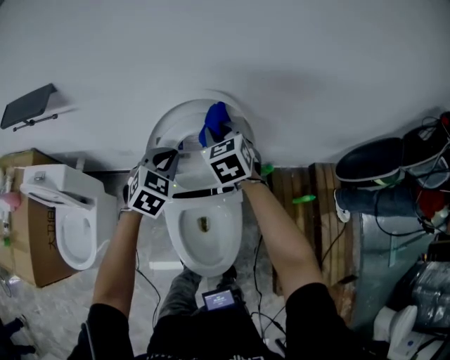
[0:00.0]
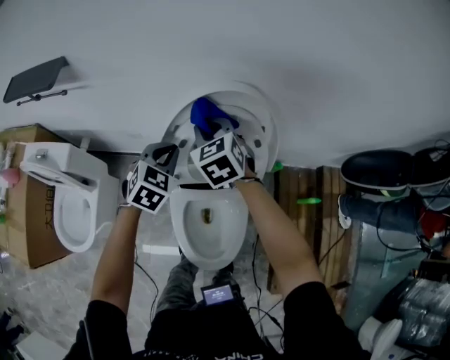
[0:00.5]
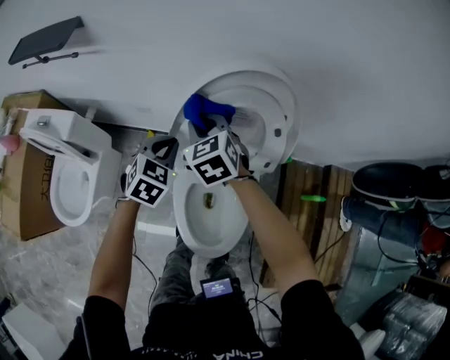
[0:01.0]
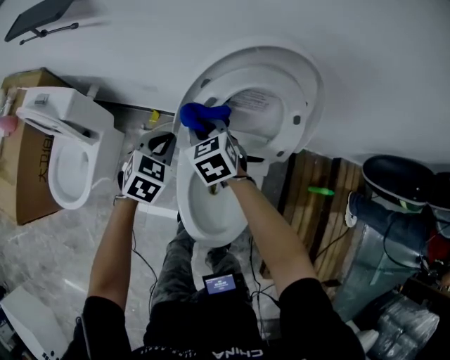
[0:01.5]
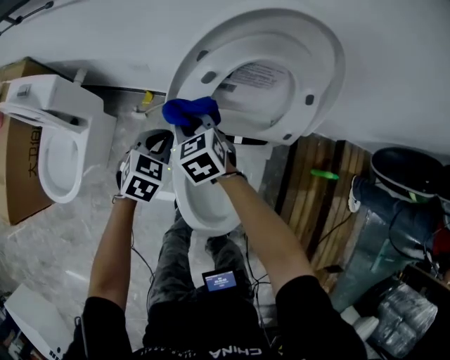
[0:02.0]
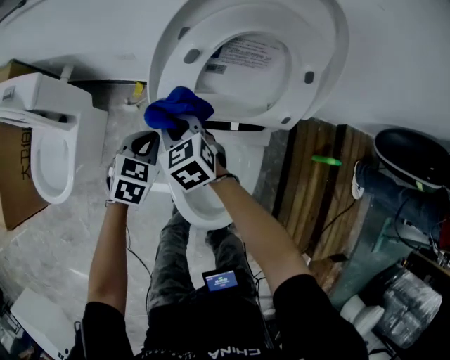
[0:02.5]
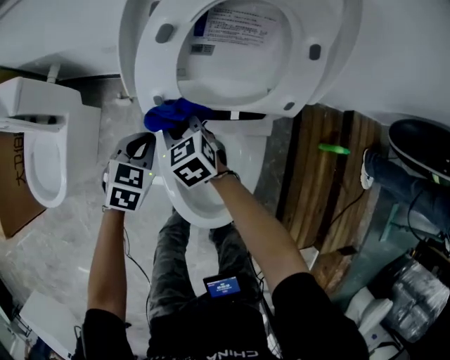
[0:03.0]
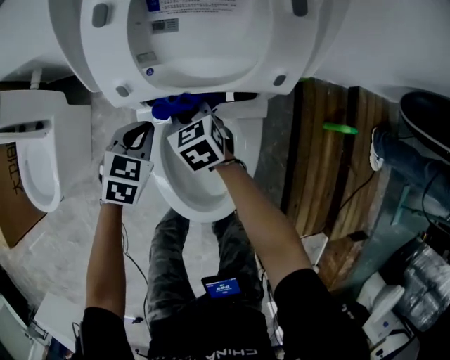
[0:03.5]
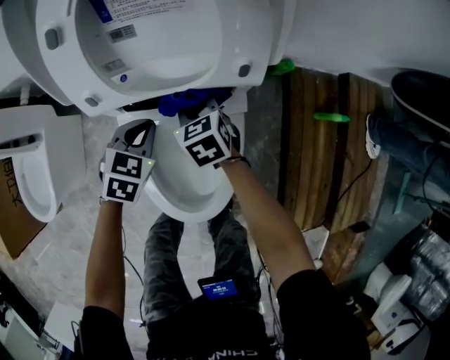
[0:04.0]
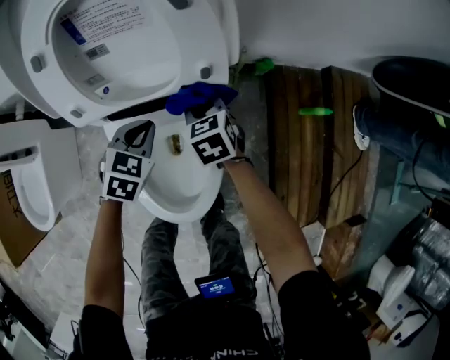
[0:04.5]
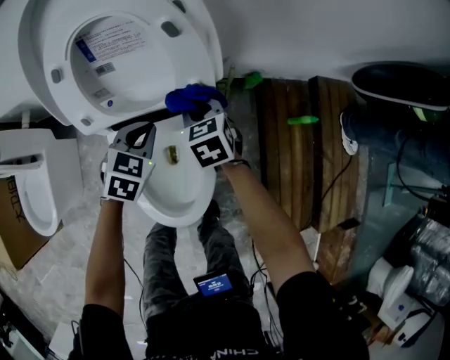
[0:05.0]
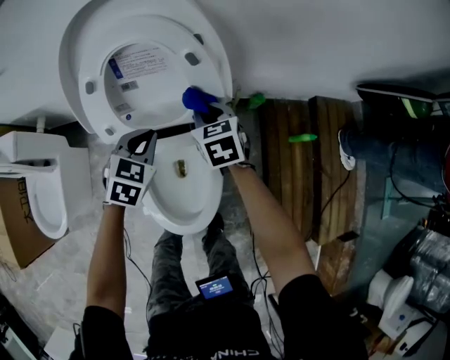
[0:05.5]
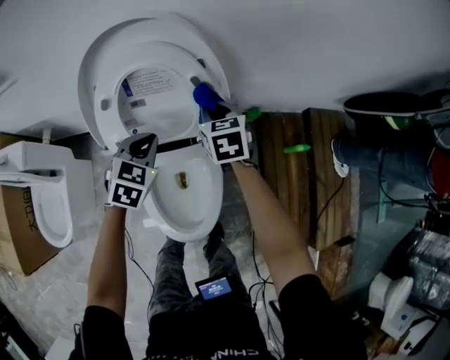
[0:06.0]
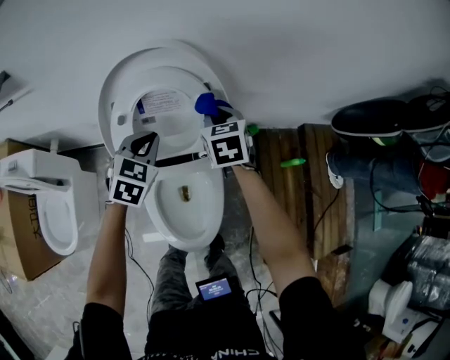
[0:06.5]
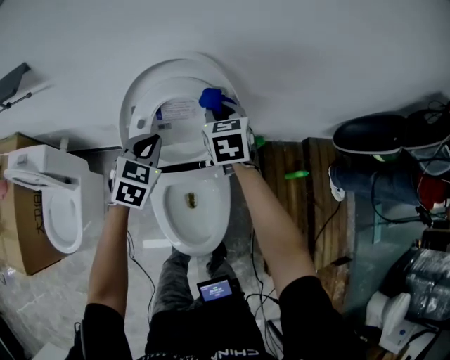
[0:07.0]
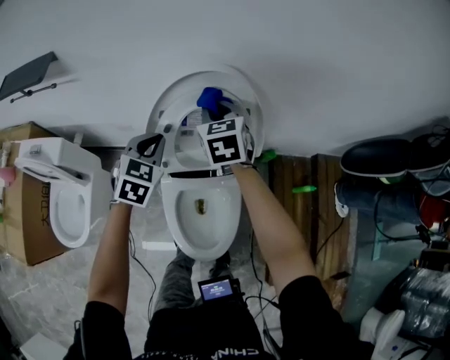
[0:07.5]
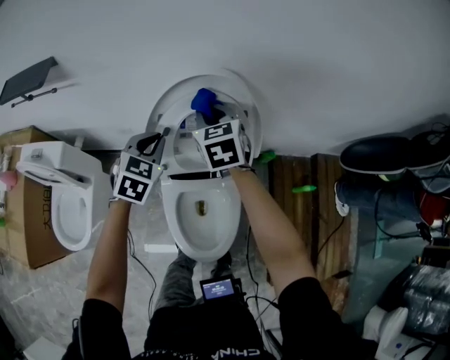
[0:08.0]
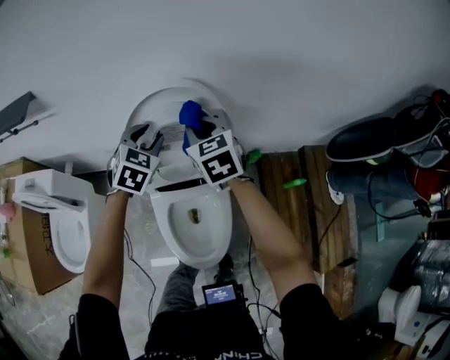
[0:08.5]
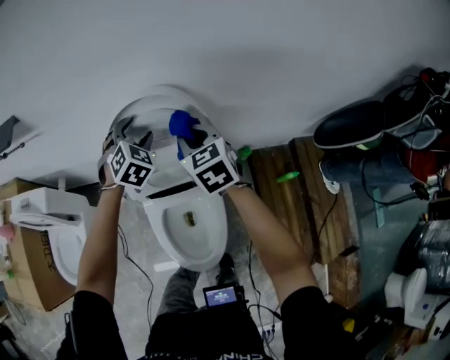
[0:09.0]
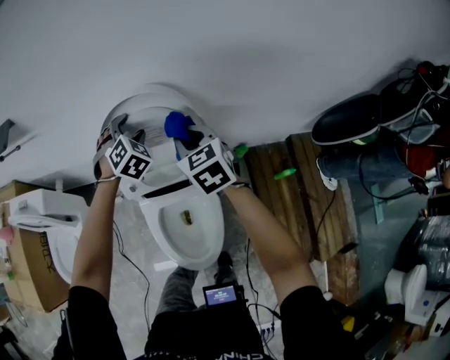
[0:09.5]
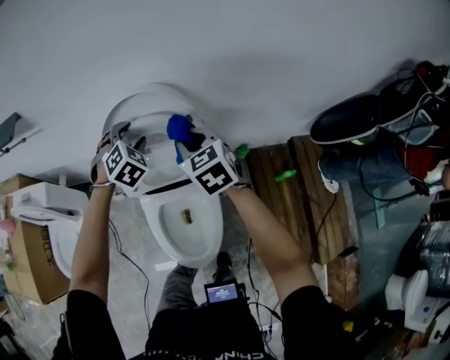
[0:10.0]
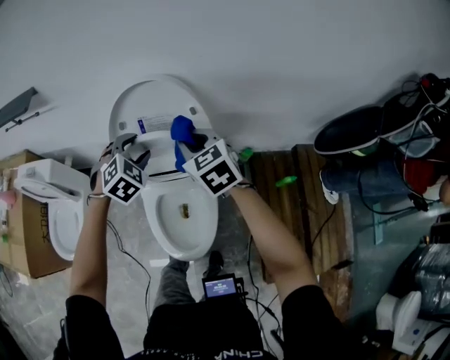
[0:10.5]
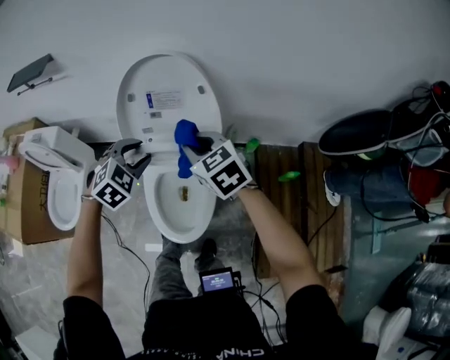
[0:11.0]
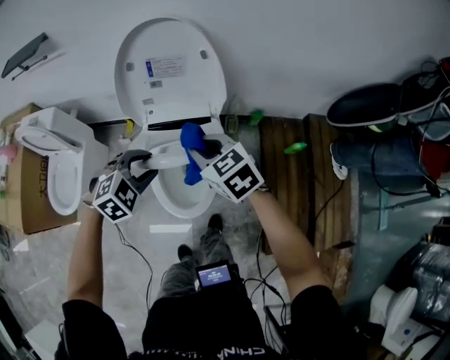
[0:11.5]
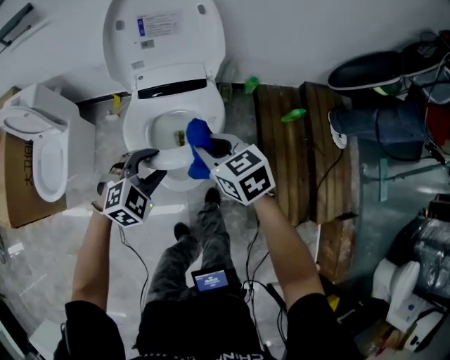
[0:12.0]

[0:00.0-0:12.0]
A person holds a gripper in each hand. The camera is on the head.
0:00.0 to 0:02.0: The two grippers go roughly 30 cm downward and to the left. The right gripper swivels approximately 20 degrees; the left gripper turns by about 20 degrees.
0:02.0 to 0:04.0: The right gripper shifts approximately 25 cm to the right and downward, while the left gripper travels downward and to the right by about 20 cm.
0:04.0 to 0:06.0: The right gripper heads upward and to the right, covering approximately 25 cm. The left gripper goes roughly 20 cm upward.
0:06.0 to 0:08.0: Both grippers travel together upward and to the left, some 20 cm.
0:08.0 to 0:10.0: The left gripper travels to the right by approximately 10 cm, swivels about 30 degrees, and opens up; the right gripper goes about 15 cm to the right and backward.
0:10.0 to 0:12.0: The left gripper is displaced backward by about 40 cm, and swivels roughly 30 degrees. The right gripper heads backward and downward, covering roughly 35 cm.

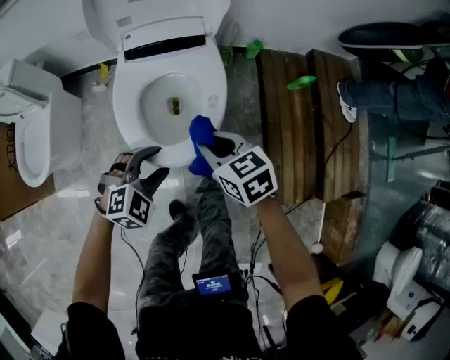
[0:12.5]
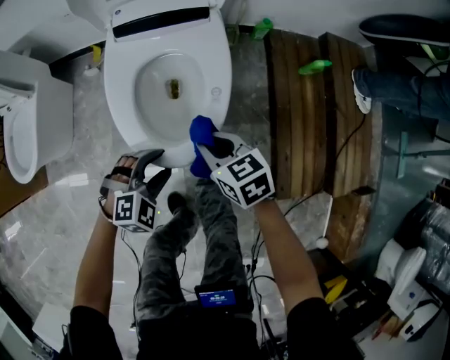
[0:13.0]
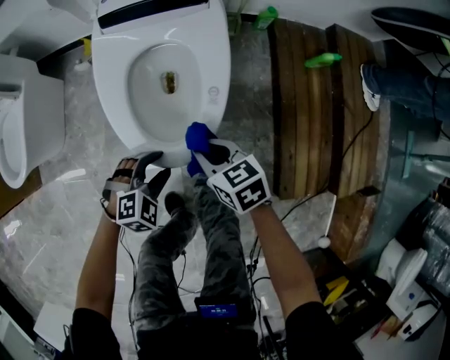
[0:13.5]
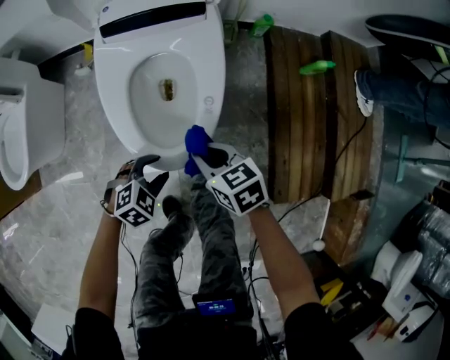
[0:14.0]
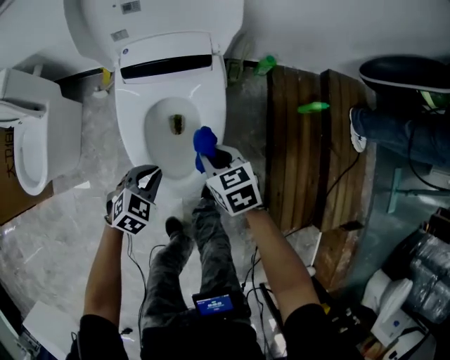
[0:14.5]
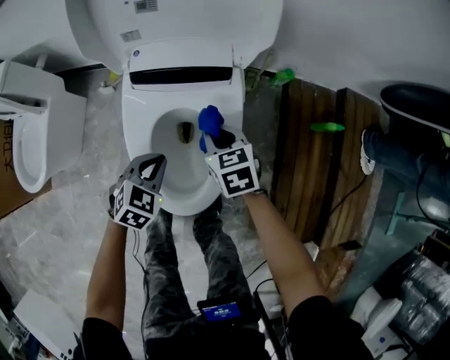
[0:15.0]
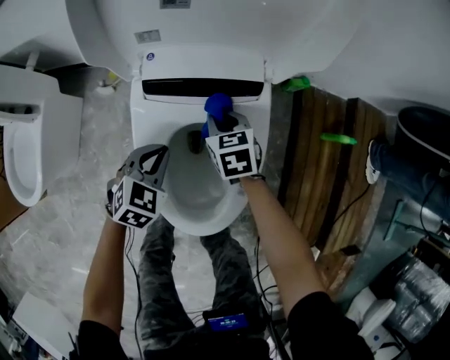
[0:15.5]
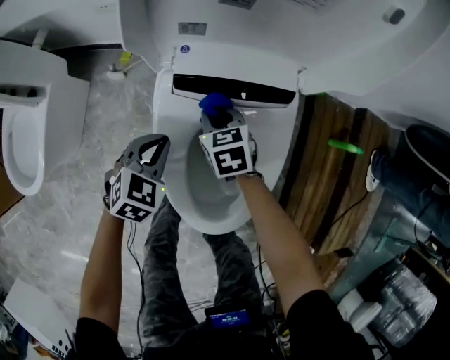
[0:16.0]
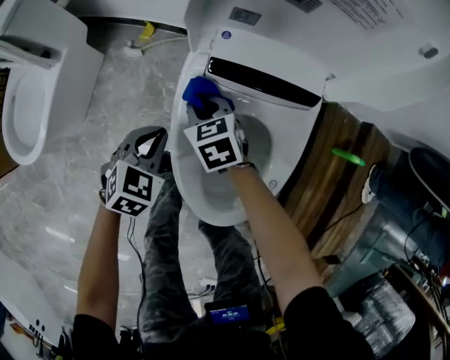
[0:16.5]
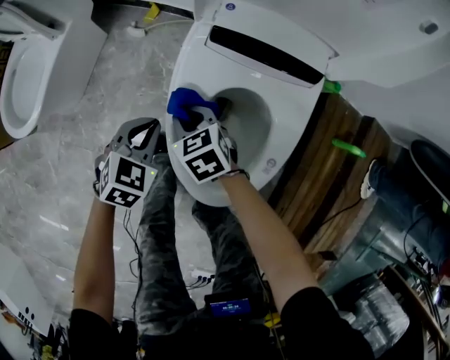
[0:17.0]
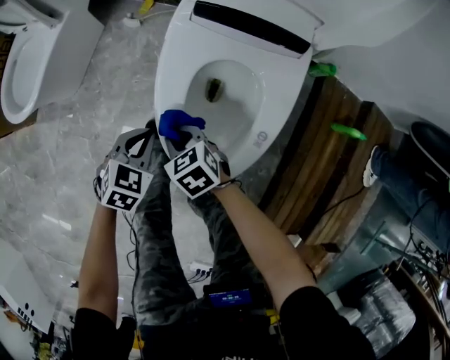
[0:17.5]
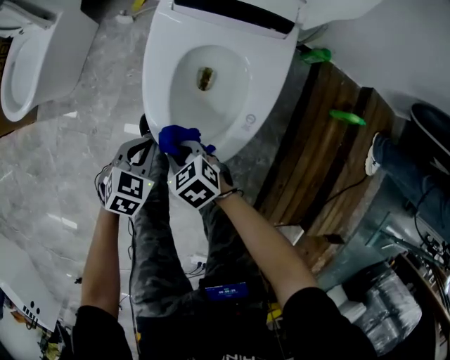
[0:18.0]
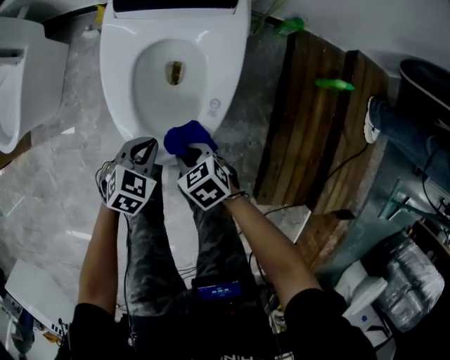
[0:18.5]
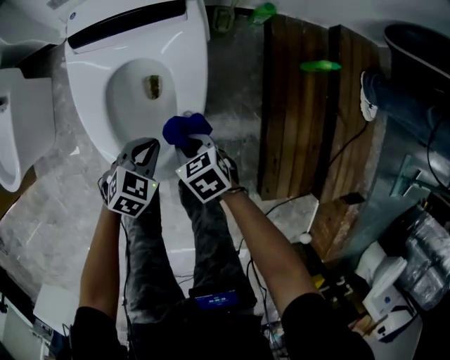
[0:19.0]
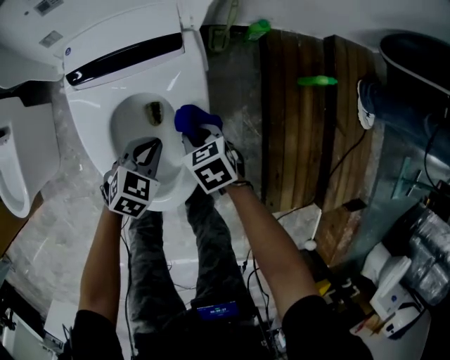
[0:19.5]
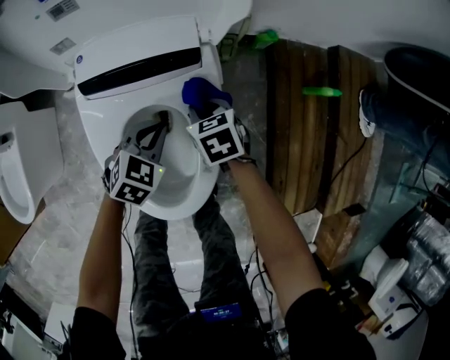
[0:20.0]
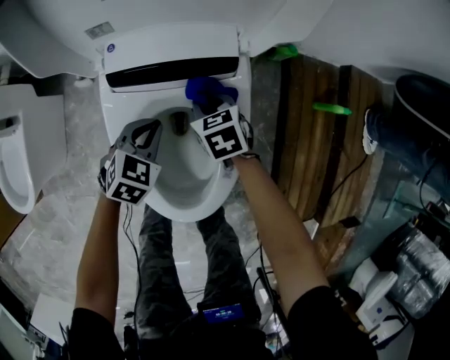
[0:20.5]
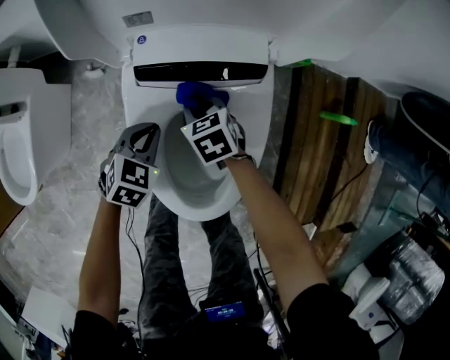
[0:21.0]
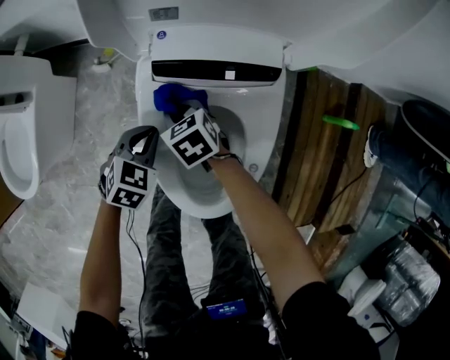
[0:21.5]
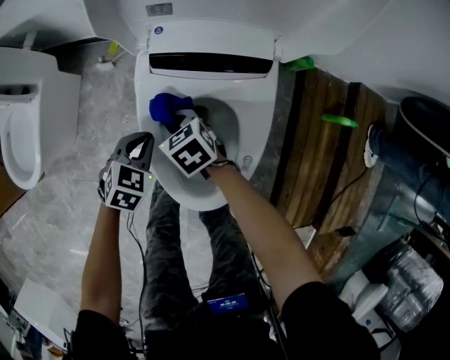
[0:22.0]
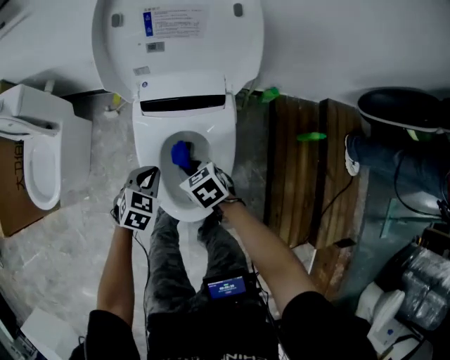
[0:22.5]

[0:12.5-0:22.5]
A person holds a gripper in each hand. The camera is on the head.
0:12.5 to 0:14.5: Both grippers travel together downward and forward, approximately 15 cm. The left gripper changes its angle by approximately 30 degrees, and closes.
0:14.5 to 0:16.5: The left gripper goes roughly 25 cm to the left and forward, and turns by some 20 degrees. Meanwhile the right gripper goes roughly 35 cm to the left, forward and downward.
0:16.5 to 0:18.5: The right gripper goes some 35 cm backward. The left gripper travels backward and to the right by approximately 30 cm.
0:18.5 to 0:20.5: The two grippers go some 30 cm forward. The right gripper changes its angle by some 20 degrees.
0:20.5 to 0:22.5: The left gripper shifts some 15 cm upward, backward and to the left. Meanwhile the right gripper is displaced backward, upward and to the left by about 20 cm.

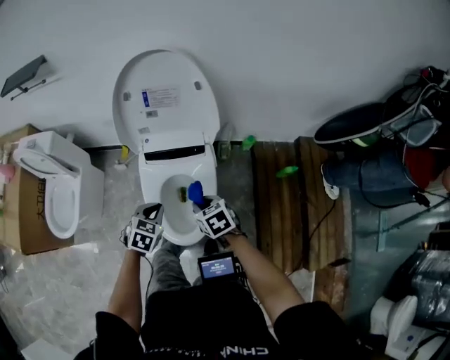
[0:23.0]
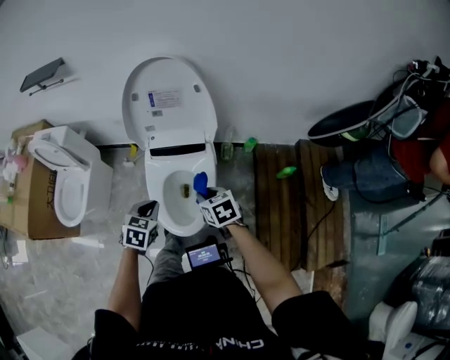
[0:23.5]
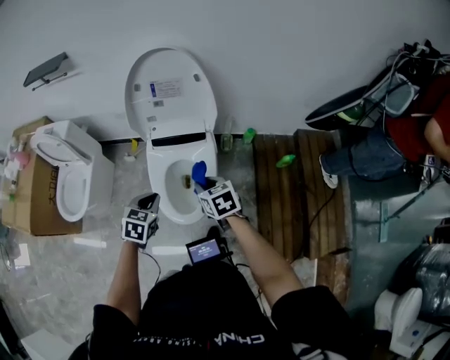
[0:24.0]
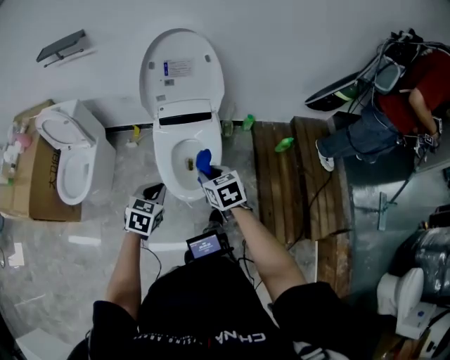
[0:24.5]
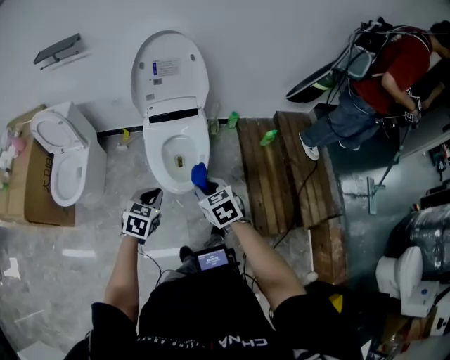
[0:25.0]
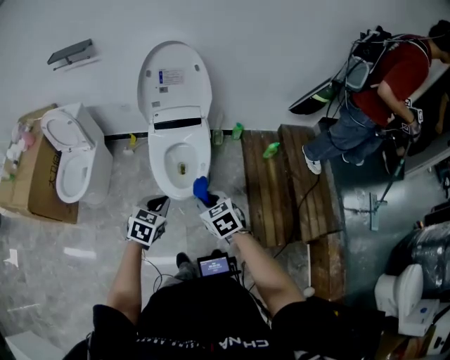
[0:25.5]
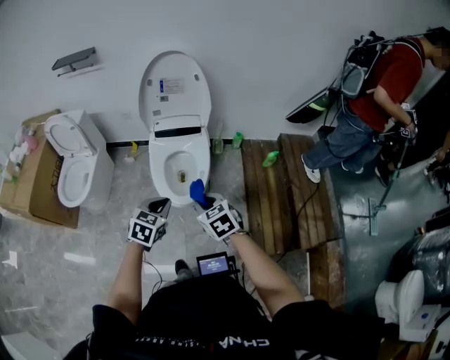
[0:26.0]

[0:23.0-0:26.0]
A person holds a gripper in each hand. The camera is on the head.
0:23.0 to 0:24.5: The two grippers go roughly 20 cm backward and upward.
0:24.5 to 0:26.0: The left gripper moves backward and to the right, some 15 cm, while the right gripper heads backward, covering approximately 15 cm.

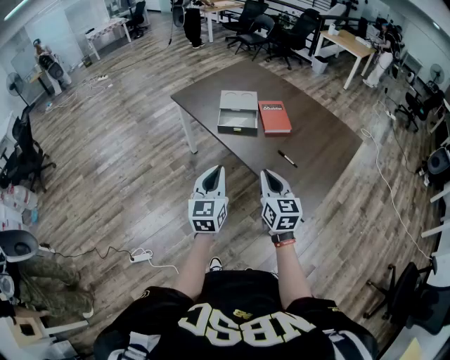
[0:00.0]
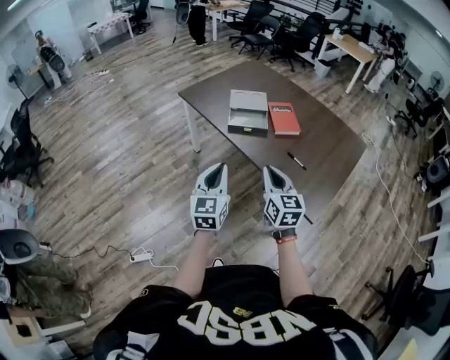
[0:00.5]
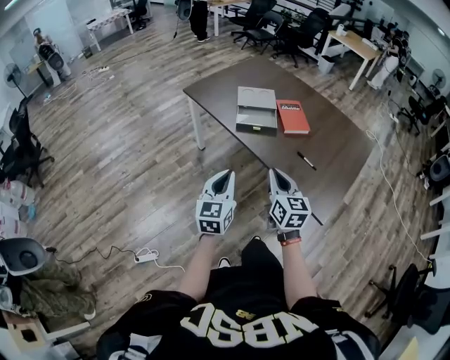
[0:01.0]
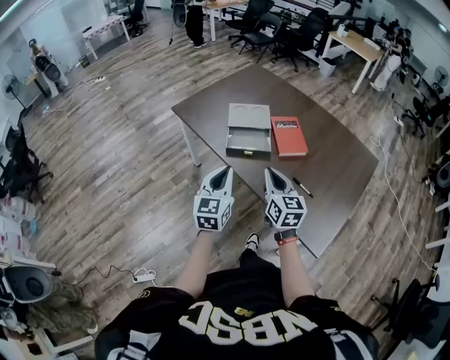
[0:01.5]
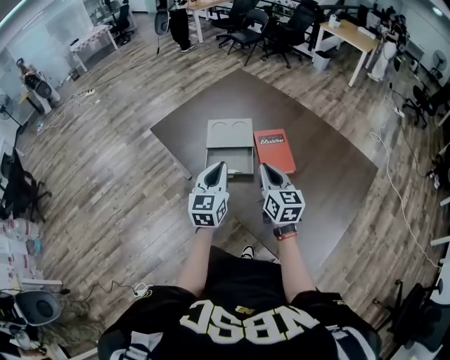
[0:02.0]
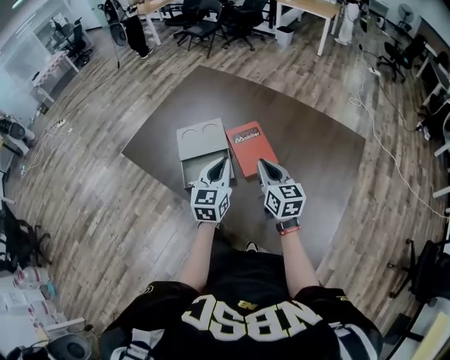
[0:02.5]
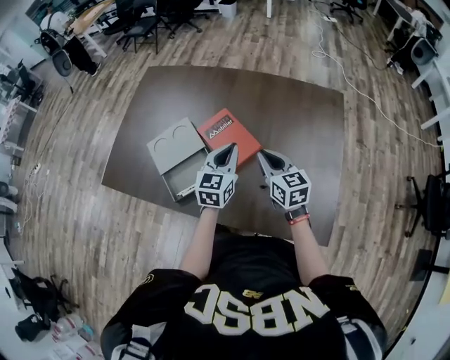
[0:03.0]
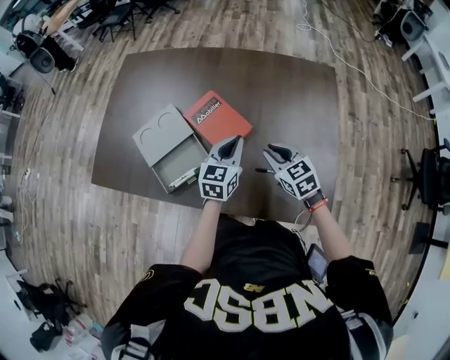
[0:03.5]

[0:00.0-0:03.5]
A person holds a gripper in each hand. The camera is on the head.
0:00.0 to 0:02.0: The two grippers go some 35 cm forward.
0:02.0 to 0:03.5: The right gripper shifts by some 20 cm, and swivels roughly 30 degrees; the left gripper changes place by approximately 25 cm, and changes its angle by about 50 degrees.
